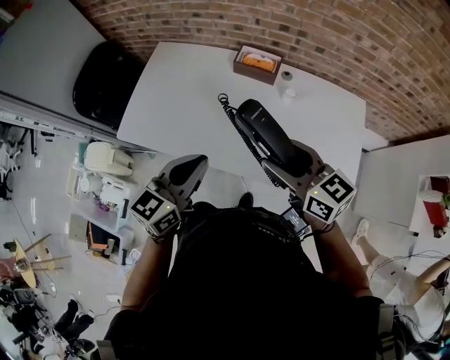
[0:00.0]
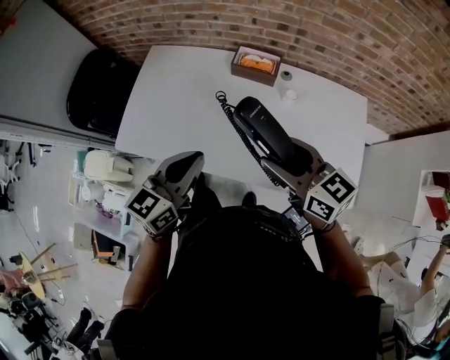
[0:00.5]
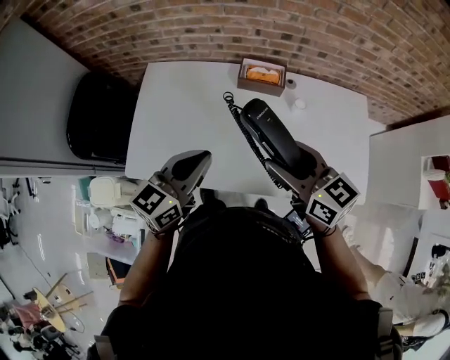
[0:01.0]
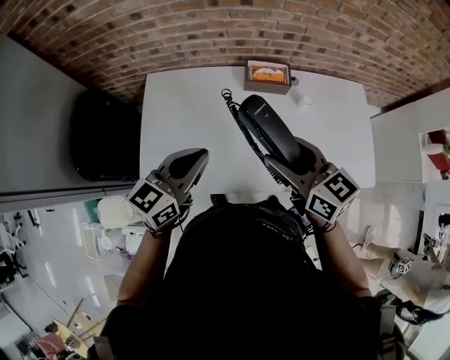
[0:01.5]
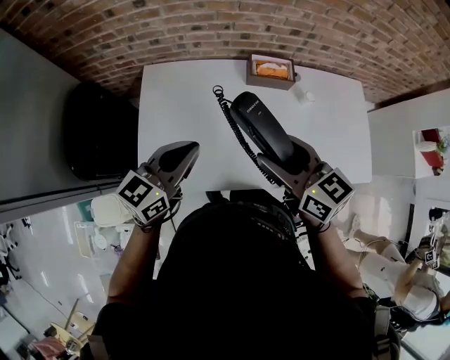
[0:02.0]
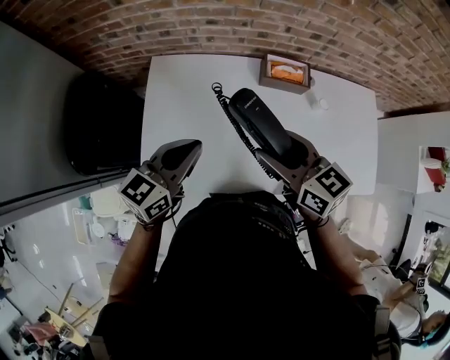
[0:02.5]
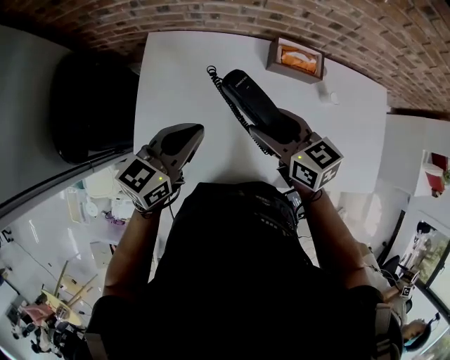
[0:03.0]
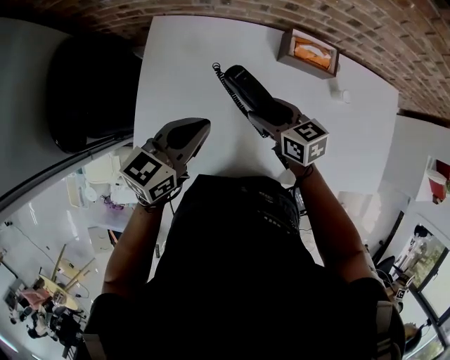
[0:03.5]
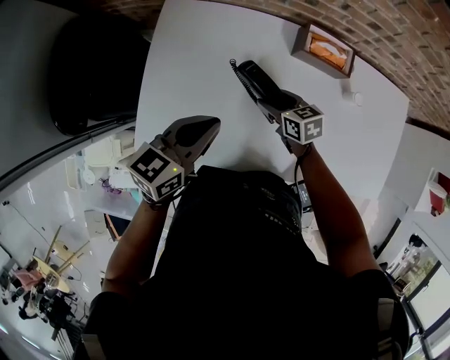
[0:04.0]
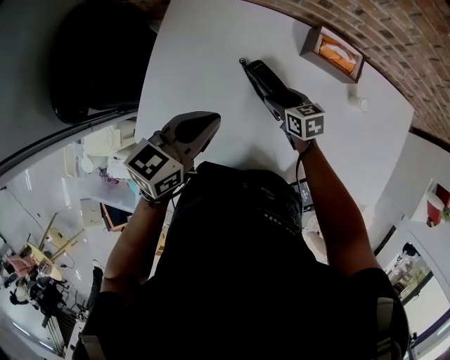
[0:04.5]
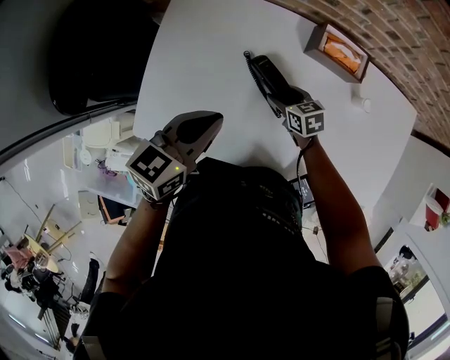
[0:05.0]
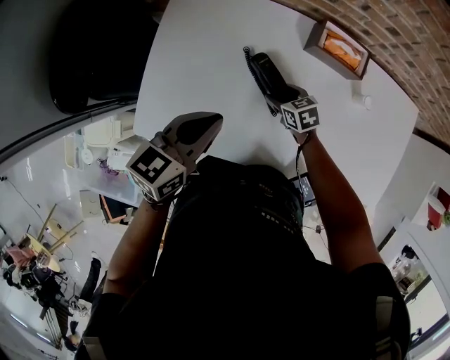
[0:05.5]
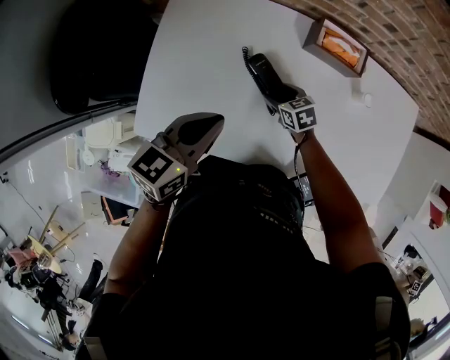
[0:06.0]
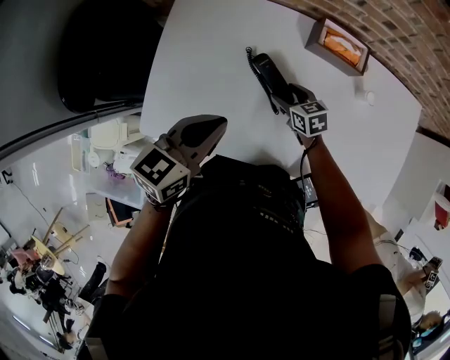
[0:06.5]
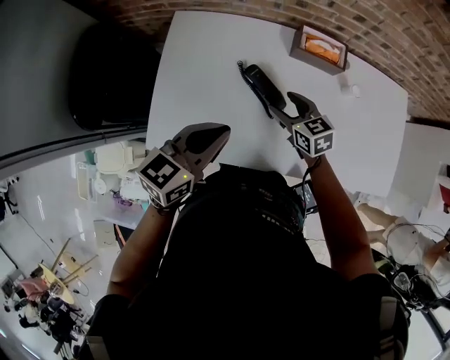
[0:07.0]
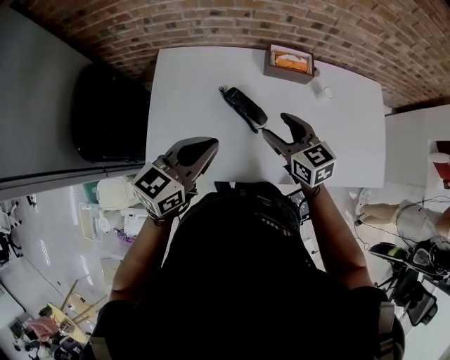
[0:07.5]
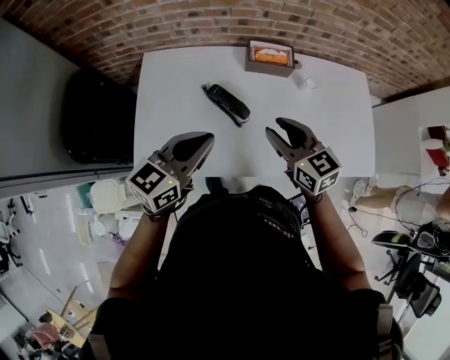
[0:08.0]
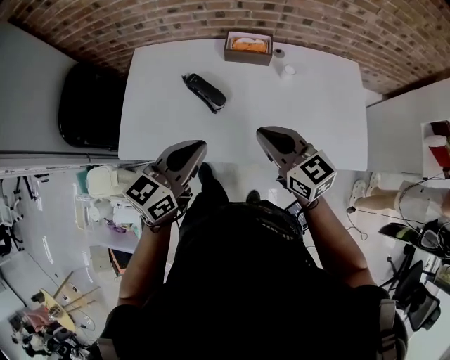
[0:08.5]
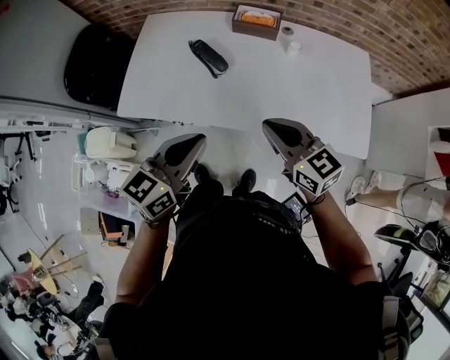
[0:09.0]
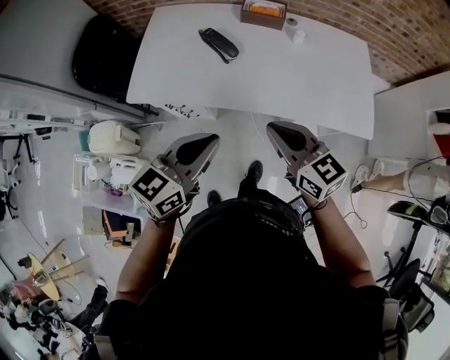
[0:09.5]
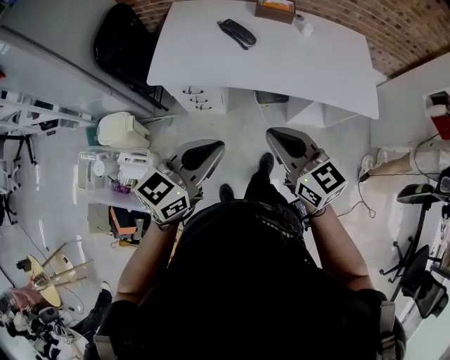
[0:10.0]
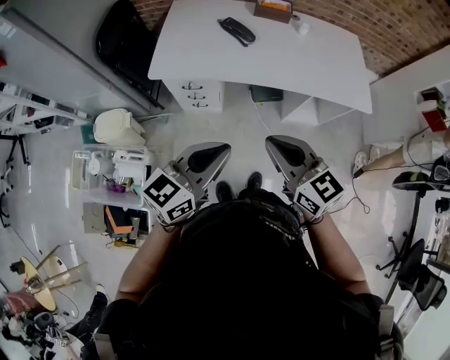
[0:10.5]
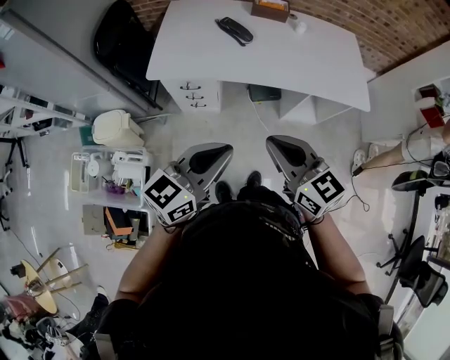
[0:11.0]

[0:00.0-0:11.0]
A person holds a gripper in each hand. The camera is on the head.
0:00.0 to 0:02.0: The grippers both shift to the left and forward by approximately 30 cm. The left gripper changes its angle by about 20 degrees.
0:02.0 to 0:03.5: The right gripper moves downward and forward, roughly 25 cm, and rotates about 20 degrees, while the left gripper goes about 15 cm downward and forward.
0:03.5 to 0:05.5: The right gripper moves downward, some 15 cm, and turns by approximately 20 degrees.
0:05.5 to 0:07.5: The right gripper goes about 25 cm upward, and changes its angle by about 30 degrees, while the left gripper moves upward and backward, some 10 cm.
0:07.5 to 0:09.0: The two grippers go roughly 30 cm backward and to the right. The right gripper closes.
0:09.0 to 0:11.0: The grippers both shift backward and to the left by approximately 35 cm.

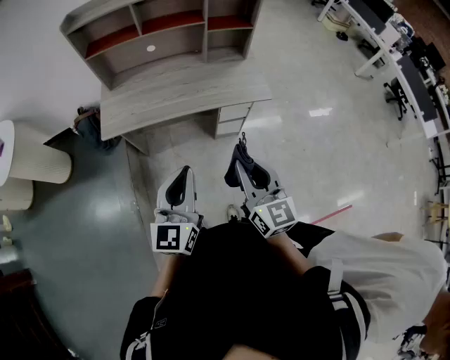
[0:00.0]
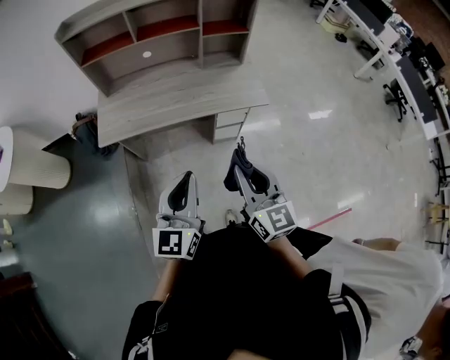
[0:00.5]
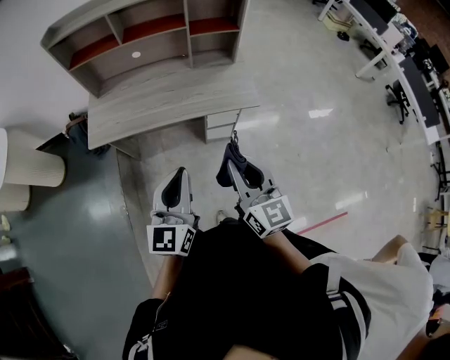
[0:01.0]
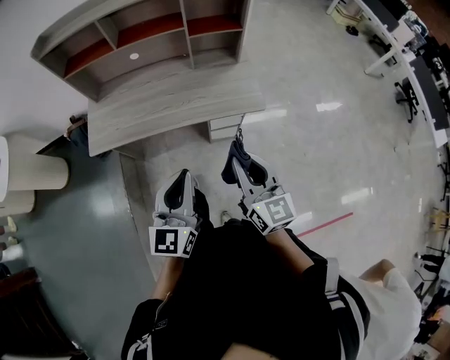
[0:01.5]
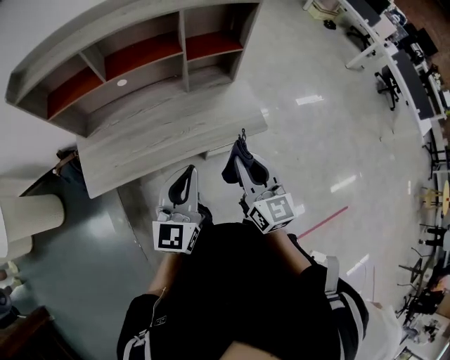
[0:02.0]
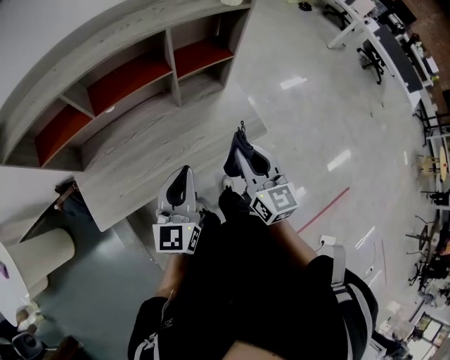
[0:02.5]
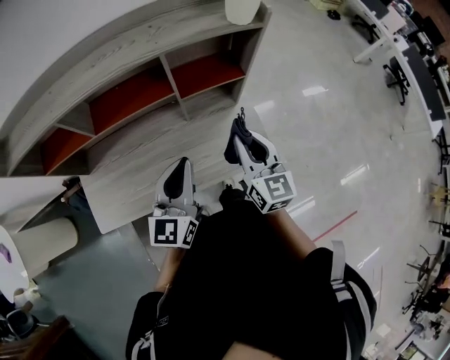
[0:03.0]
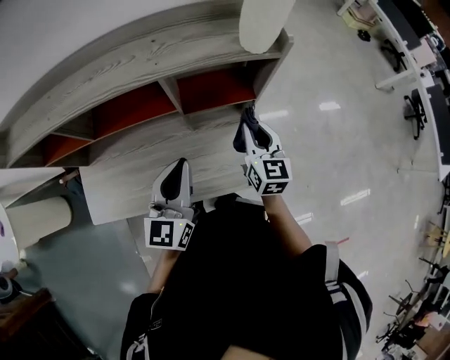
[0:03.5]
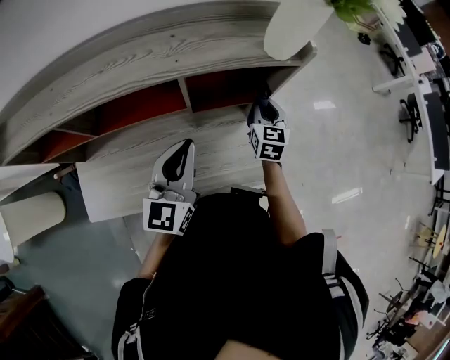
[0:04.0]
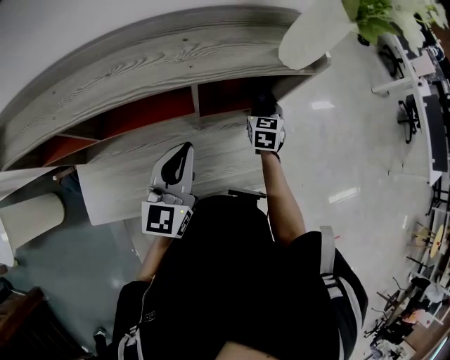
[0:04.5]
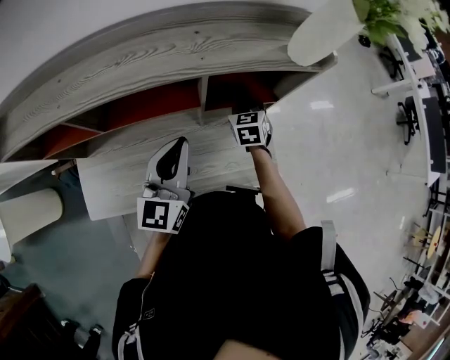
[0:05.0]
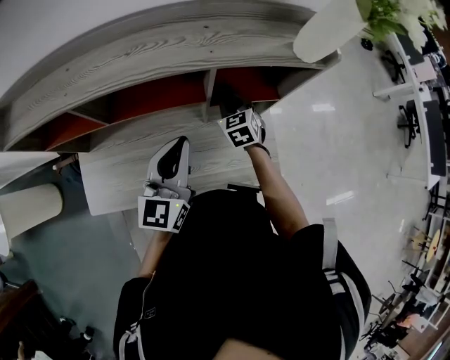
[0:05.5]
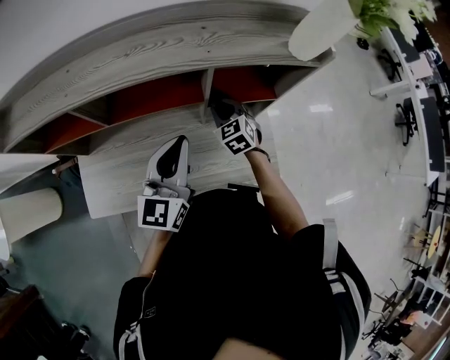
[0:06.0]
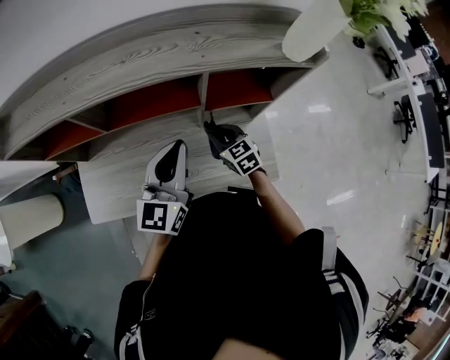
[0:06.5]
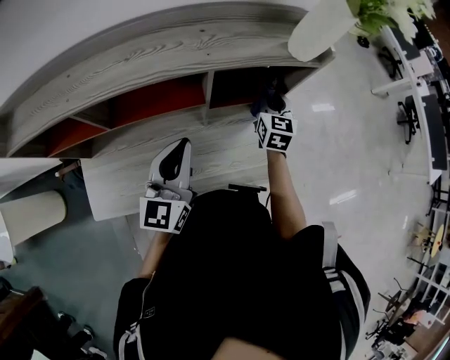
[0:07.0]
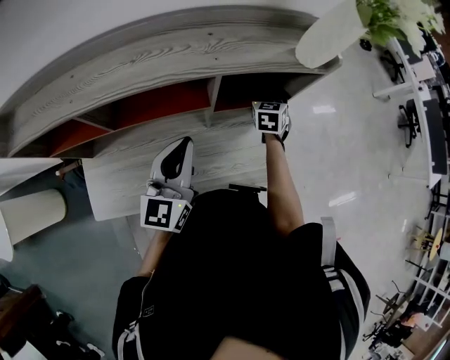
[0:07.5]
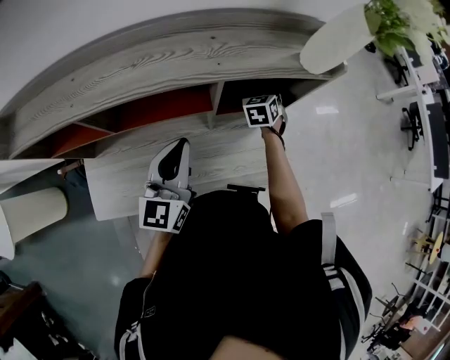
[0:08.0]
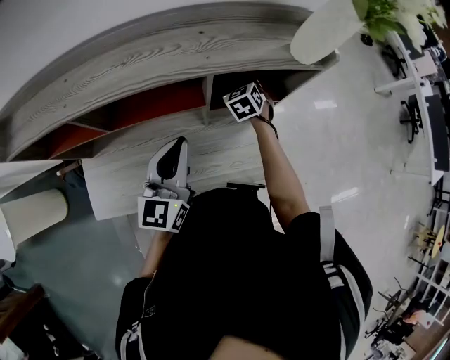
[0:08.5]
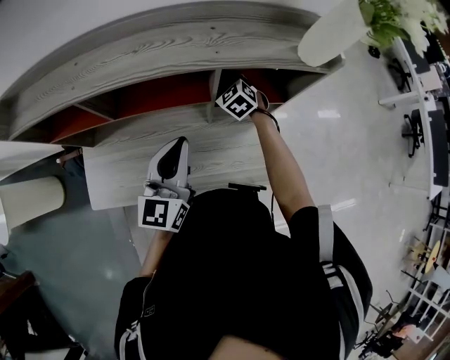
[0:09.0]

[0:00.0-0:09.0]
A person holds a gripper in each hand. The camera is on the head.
0:00.0 to 0:02.0: The two grippers go approximately 25 cm forward.
0:02.0 to 0:04.5: The right gripper heads forward, covering approximately 50 cm, and turns by approximately 30 degrees, while the left gripper heads forward, covering roughly 30 cm.
0:04.5 to 0:07.0: The right gripper moves upward, roughly 5 cm, and goes to the left and returns, some 15 cm each way.
0:07.0 to 0:09.0: The right gripper goes roughly 20 cm to the left and downward, and swivels roughly 60 degrees.

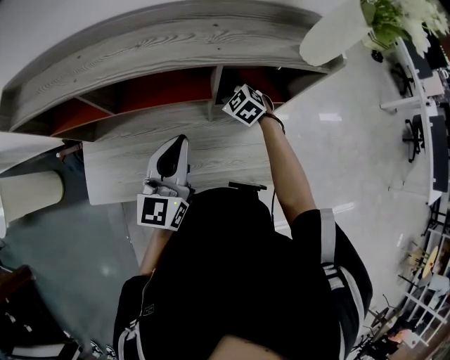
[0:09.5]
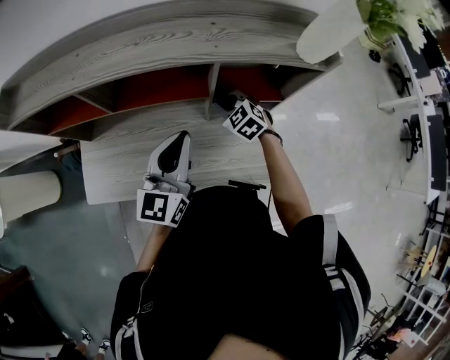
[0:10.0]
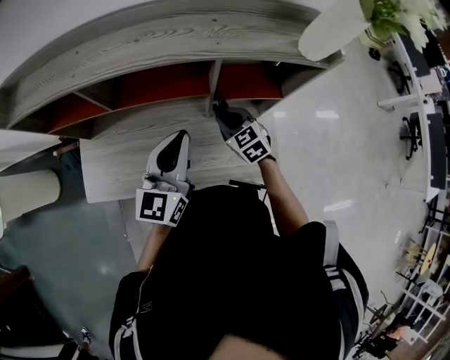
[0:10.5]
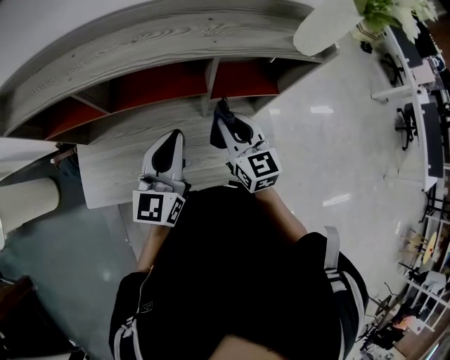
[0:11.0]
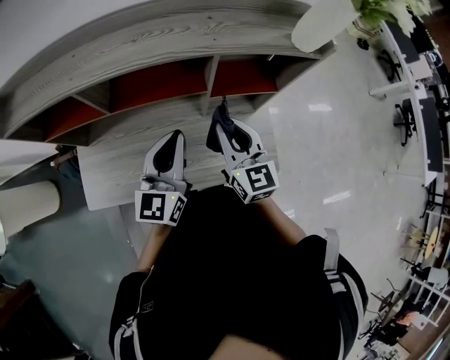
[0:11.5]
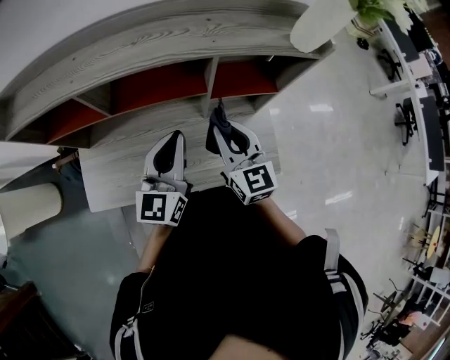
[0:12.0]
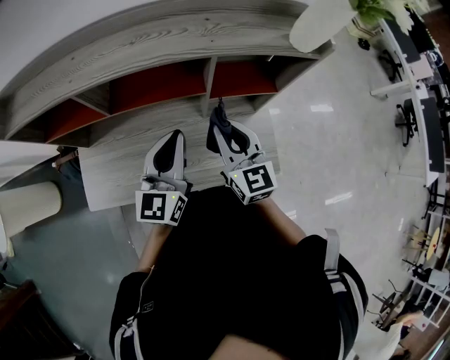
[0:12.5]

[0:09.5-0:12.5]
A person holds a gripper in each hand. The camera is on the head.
0:09.5 to 0:11.0: The right gripper goes roughly 20 cm backward and upward, and turns by some 50 degrees.
0:11.0 to 0:12.5: The grippers move only a little.

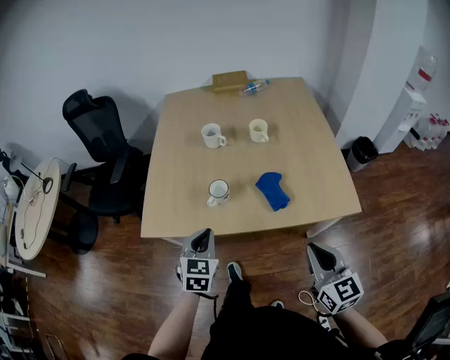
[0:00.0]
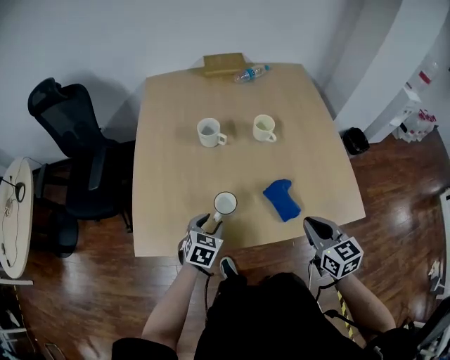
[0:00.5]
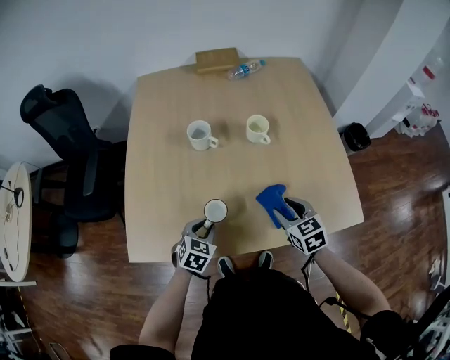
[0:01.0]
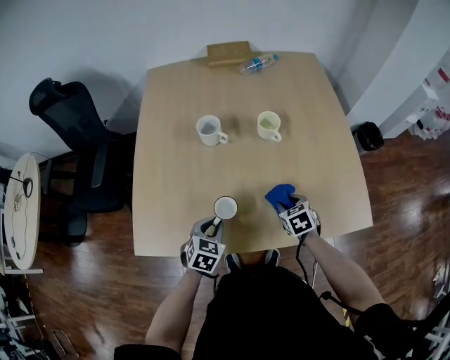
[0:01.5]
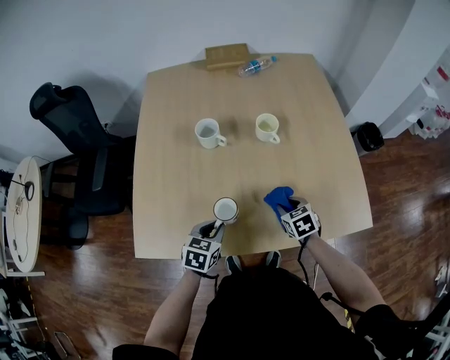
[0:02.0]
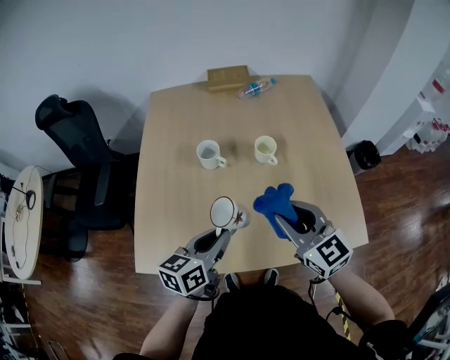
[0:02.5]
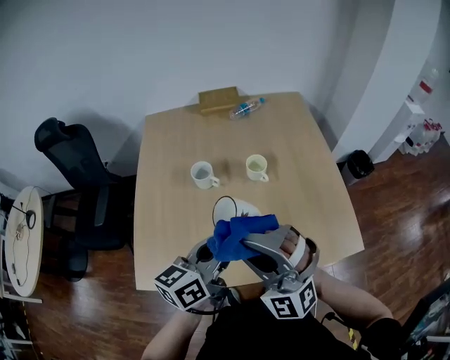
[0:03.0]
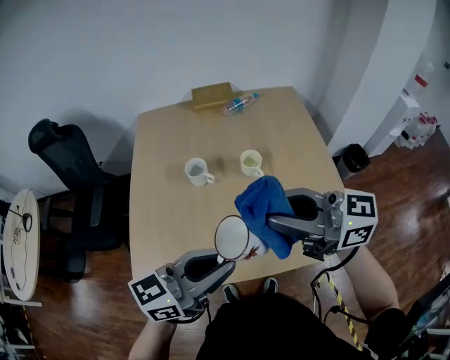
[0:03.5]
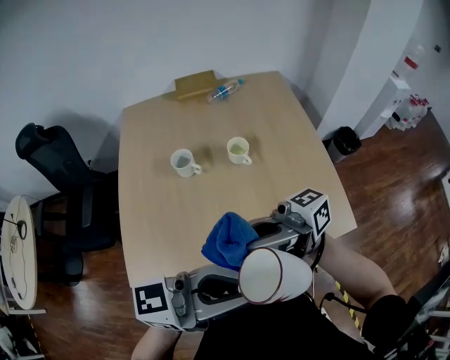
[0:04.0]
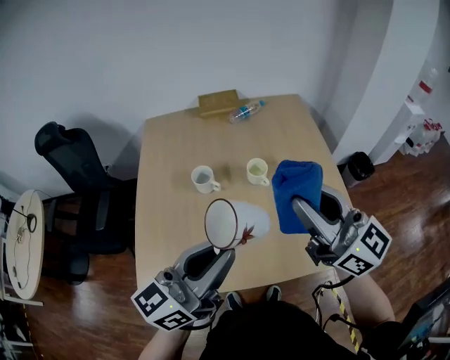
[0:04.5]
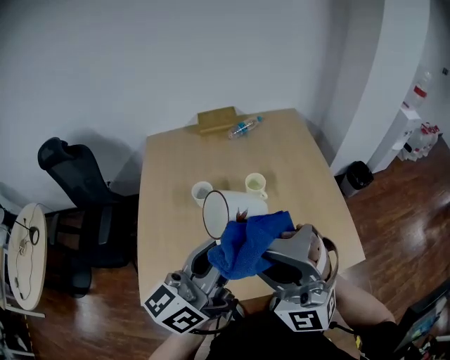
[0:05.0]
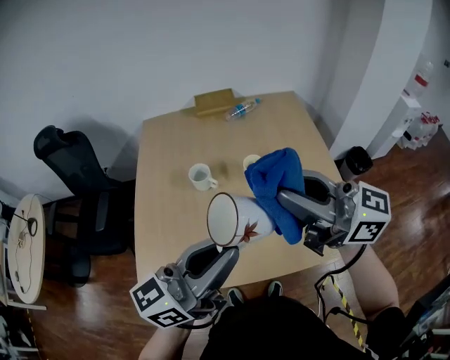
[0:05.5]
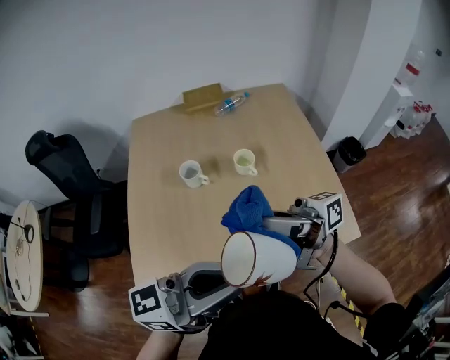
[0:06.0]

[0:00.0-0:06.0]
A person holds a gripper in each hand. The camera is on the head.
0:00.0 to 0:02.0: The left gripper goes about 15 cm forward and downward, swivels about 30 degrees, and opens, then closes once more, while the right gripper shifts approximately 35 cm forward and downward, angles its fingers downward, by about 40 degrees, and opens up.
0:02.0 to 0:04.0: The two grippers go approximately 40 cm upward. The right gripper points its fingers about 90 degrees further upward. Meanwhile the left gripper points its fingers approximately 60 degrees further upward.
0:04.0 to 0:06.0: The right gripper moves some 10 cm upward and comes back.
